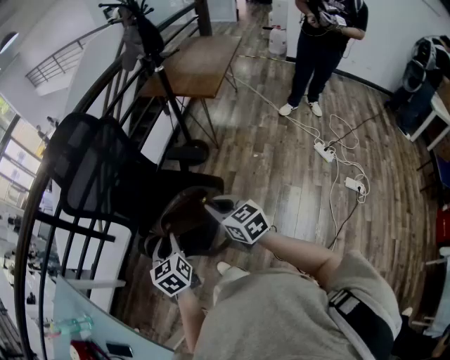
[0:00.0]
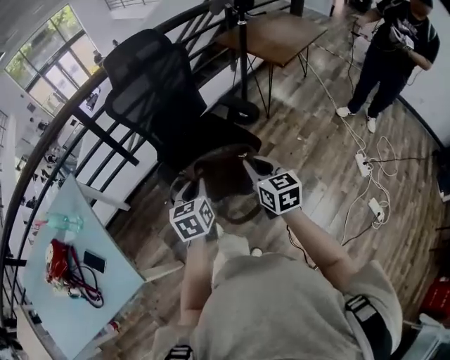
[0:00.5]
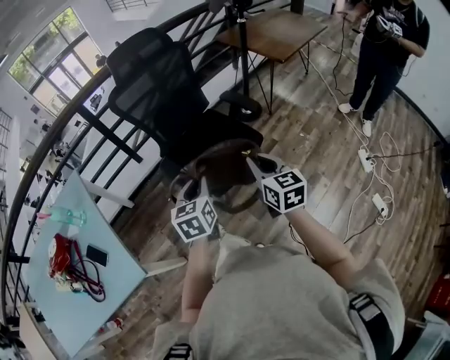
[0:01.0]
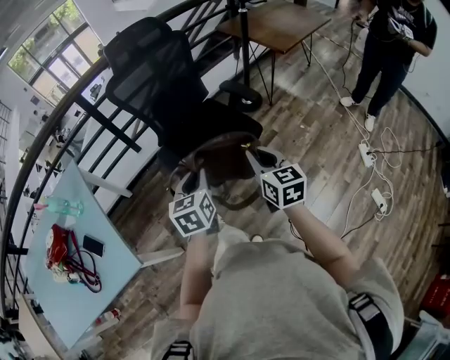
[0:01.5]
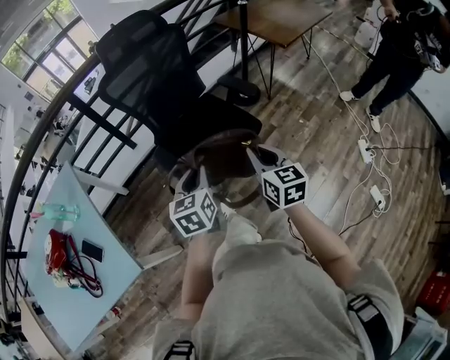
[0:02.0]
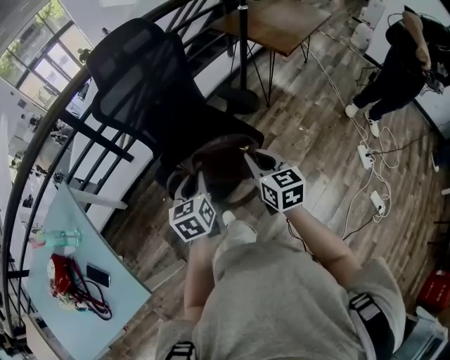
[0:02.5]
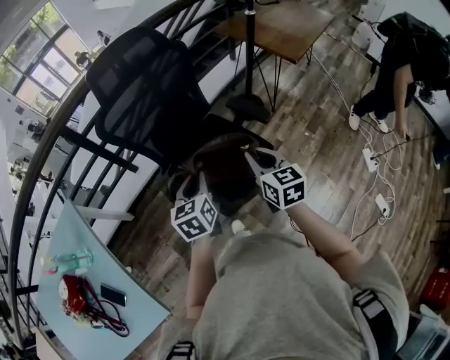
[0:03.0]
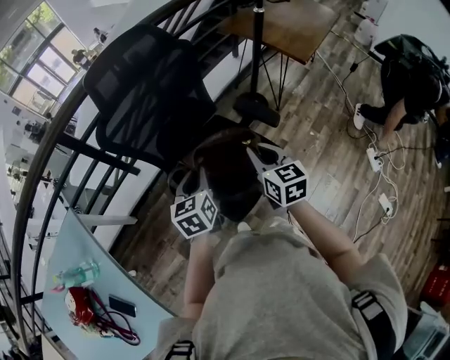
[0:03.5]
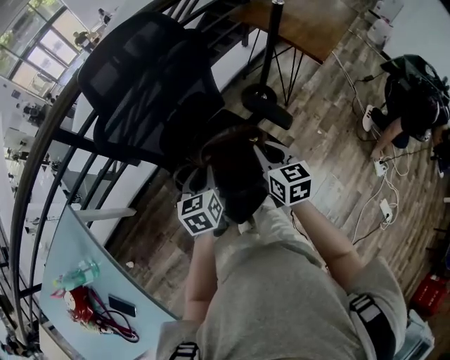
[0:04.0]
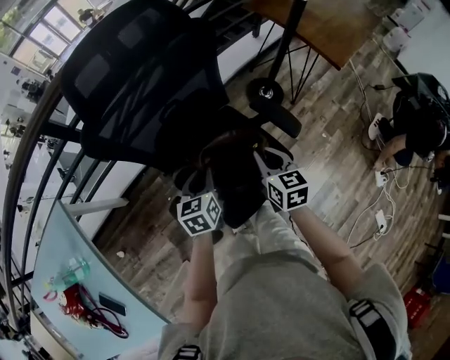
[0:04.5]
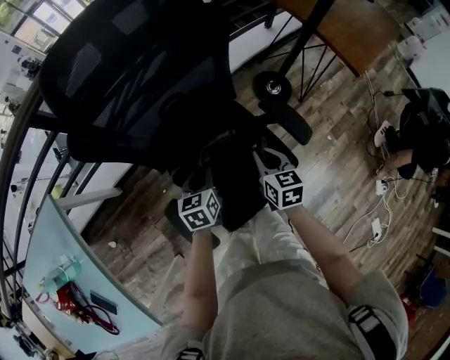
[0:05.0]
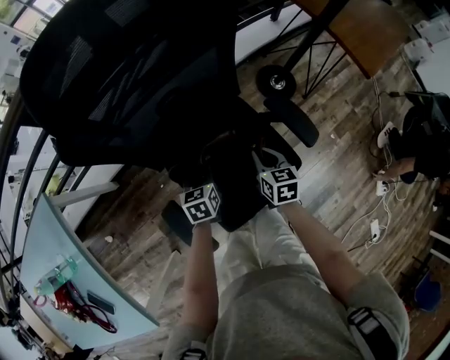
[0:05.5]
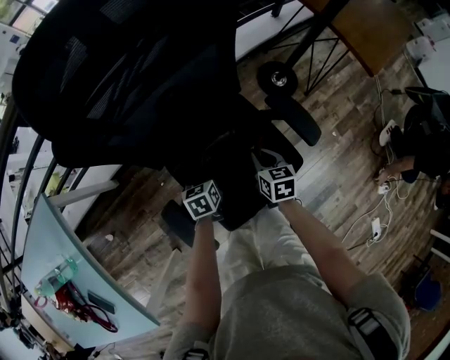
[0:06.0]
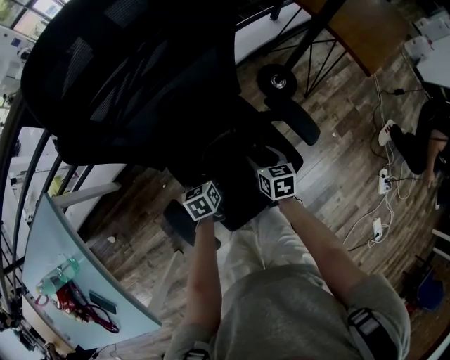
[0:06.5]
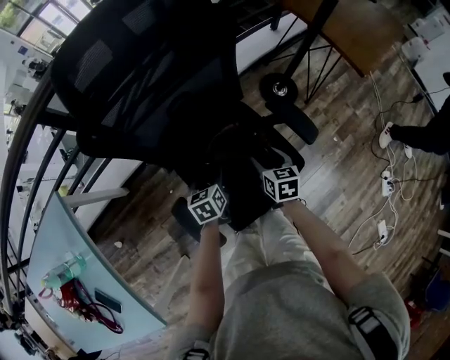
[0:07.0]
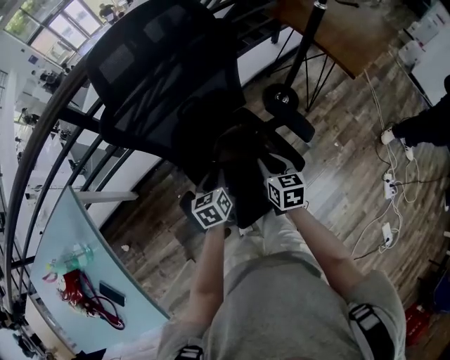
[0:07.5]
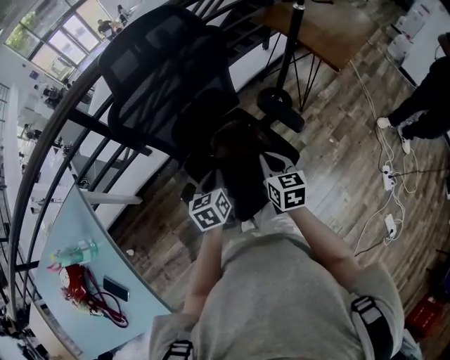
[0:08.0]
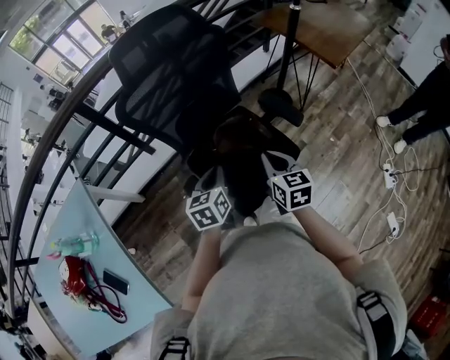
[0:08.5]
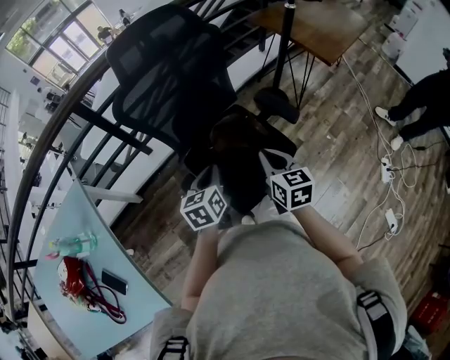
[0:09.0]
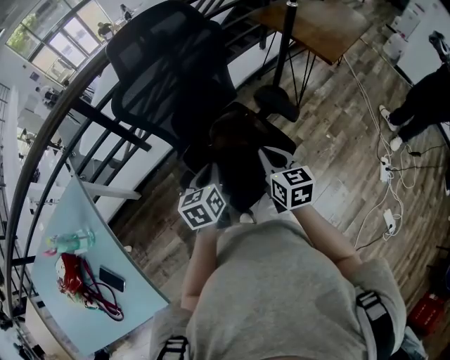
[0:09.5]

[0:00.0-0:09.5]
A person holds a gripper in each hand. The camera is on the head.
0:00.0 to 0:02.0: Both grippers travel together backward, approximately 5 cm.
0:02.0 to 0:04.0: The grippers both shift forward by about 30 cm.
0:04.0 to 0:05.5: The right gripper goes about 25 cm downward and forward; the left gripper moves downward, some 20 cm.
0:05.5 to 0:07.5: Both grippers travel together upward and backward, some 10 cm. The right gripper opens and closes again, while the left gripper opens, then closes again.
0:07.5 to 0:09.5: The two grippers go about 15 cm upward and backward. The right gripper closes up.

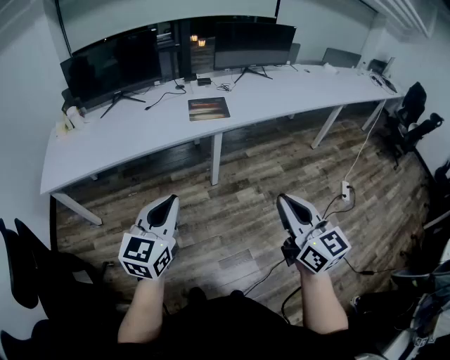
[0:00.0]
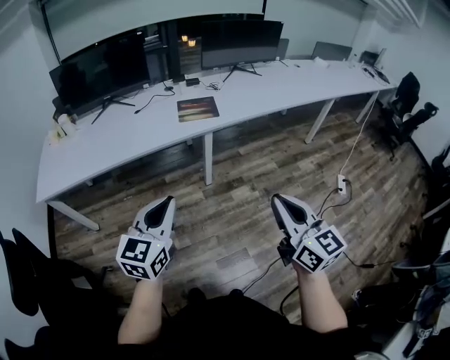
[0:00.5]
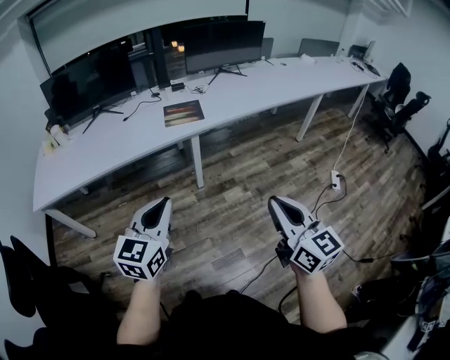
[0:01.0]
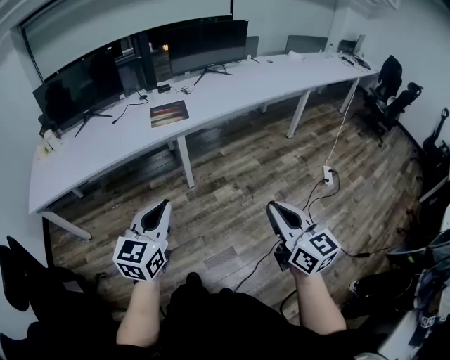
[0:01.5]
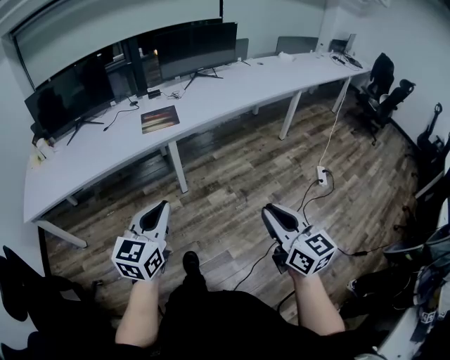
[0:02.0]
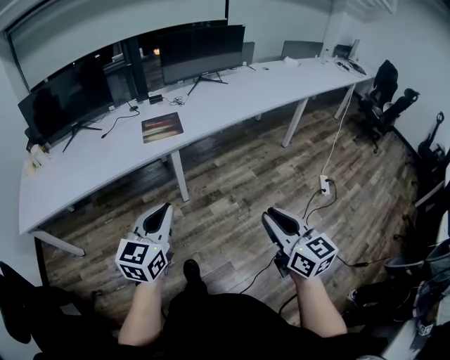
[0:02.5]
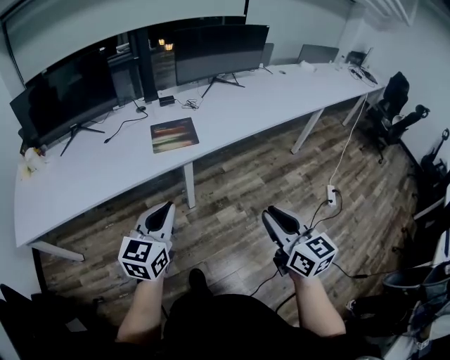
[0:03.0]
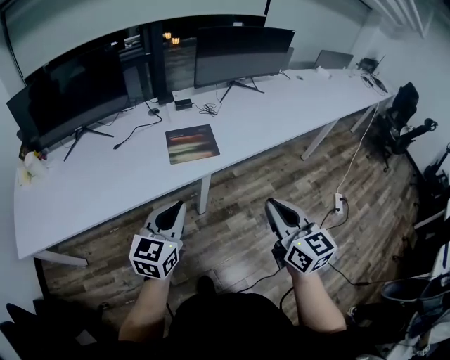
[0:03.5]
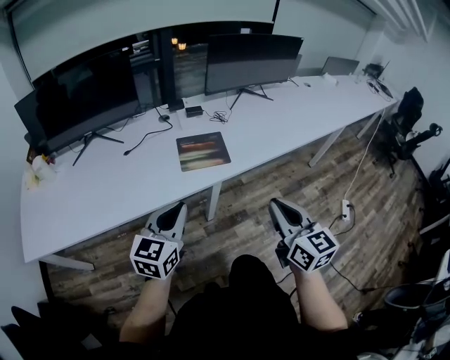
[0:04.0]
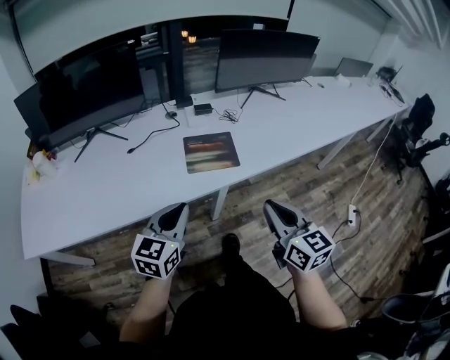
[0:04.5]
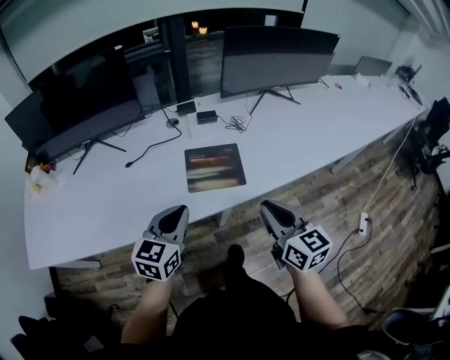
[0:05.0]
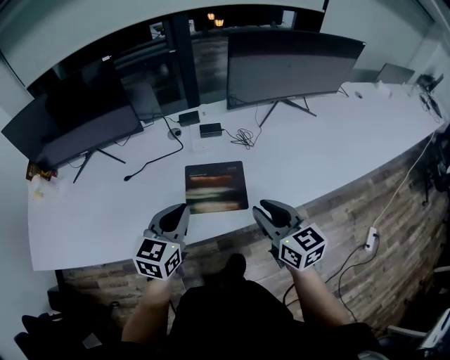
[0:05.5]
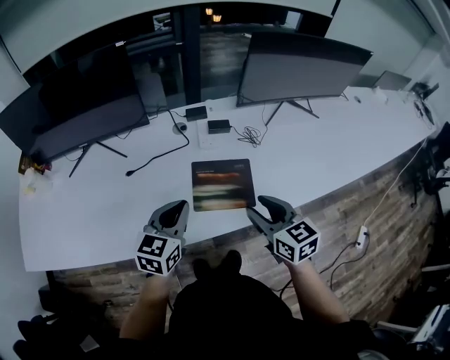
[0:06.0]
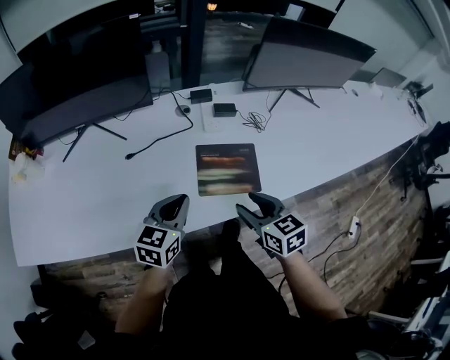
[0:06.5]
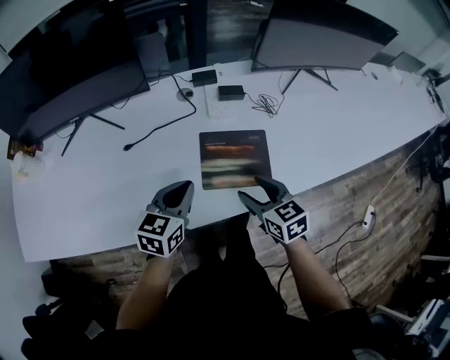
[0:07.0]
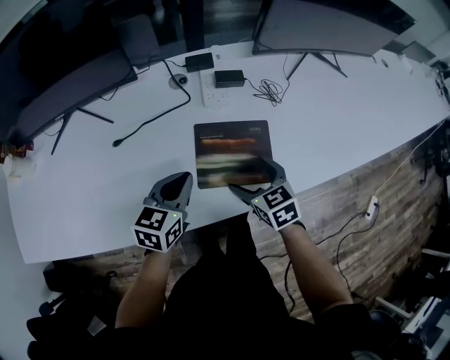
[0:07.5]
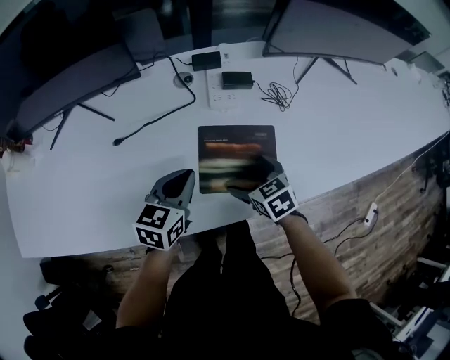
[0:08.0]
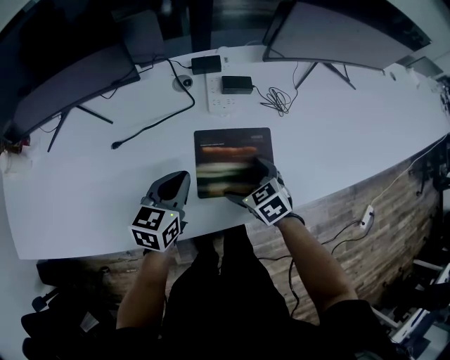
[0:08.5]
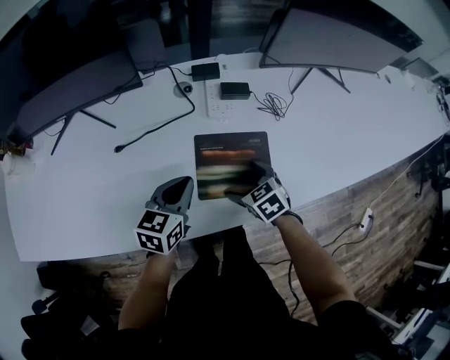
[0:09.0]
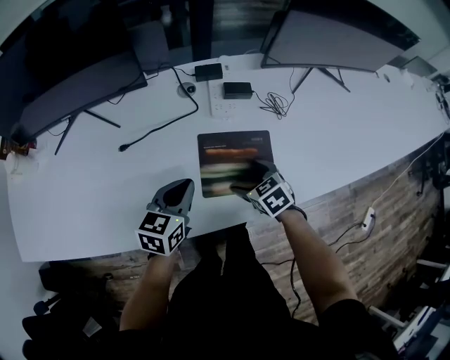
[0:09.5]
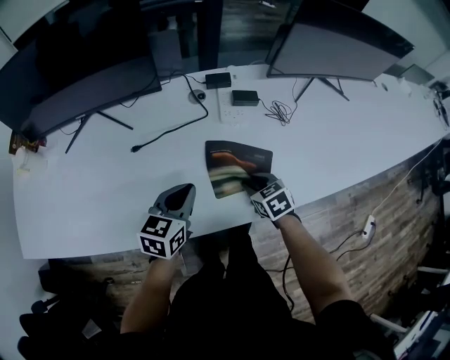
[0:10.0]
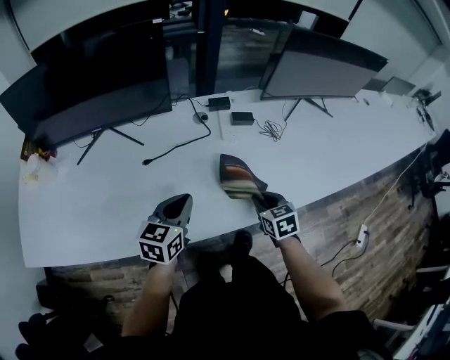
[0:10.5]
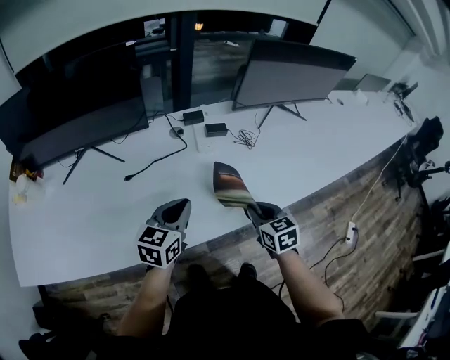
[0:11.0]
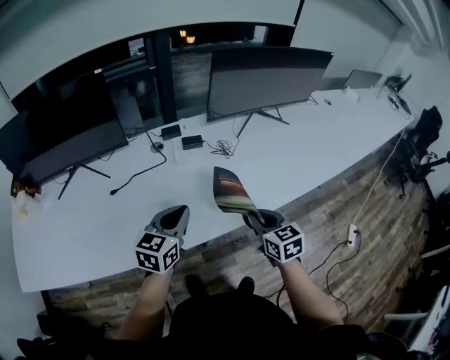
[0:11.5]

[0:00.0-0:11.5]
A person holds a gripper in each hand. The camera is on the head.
0:00.0 to 0:02.0: The grippers both shift to the right by roughly 15 cm.
0:02.0 to 0:04.0: The two grippers travel together, forward and to the left, some 40 cm.
0:04.0 to 0:06.0: Both grippers travel together forward, some 30 cm. The right gripper rotates some 20 degrees.
0:06.0 to 0:07.5: The left gripper moves downward and forward, about 15 cm; the right gripper shifts about 15 cm downward, and opens.
0:07.5 to 0:09.5: The right gripper moves about 5 cm.
0:09.5 to 0:11.5: The grippers both shift upward, to the right and backward by roughly 20 cm. The right gripper rotates approximately 30 degrees, and closes.

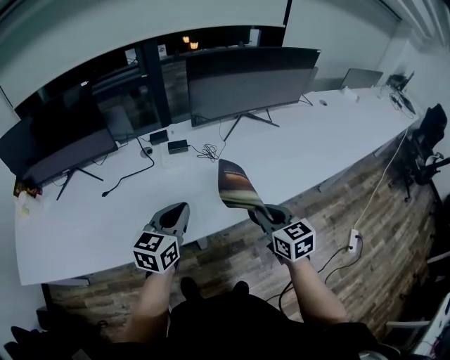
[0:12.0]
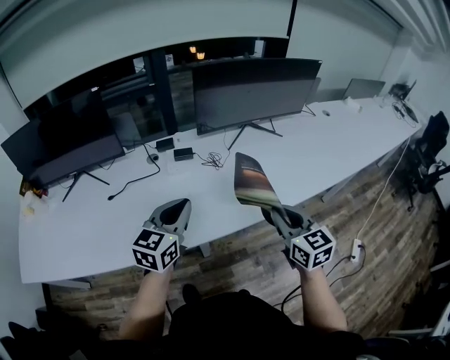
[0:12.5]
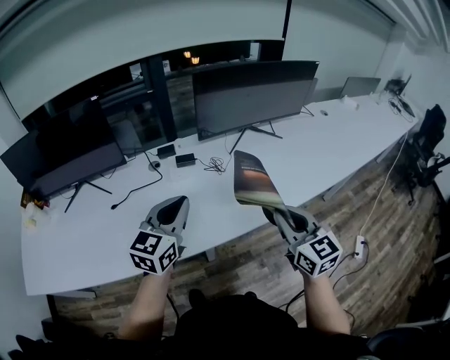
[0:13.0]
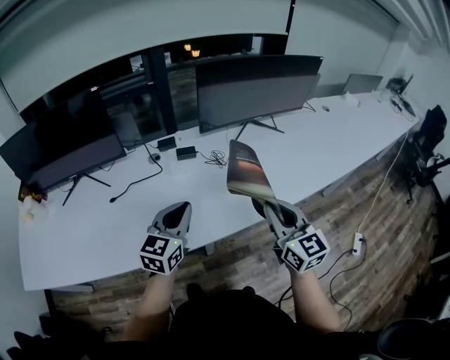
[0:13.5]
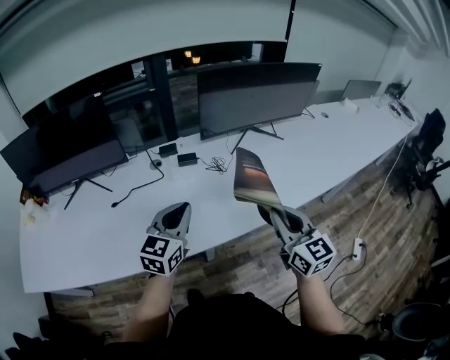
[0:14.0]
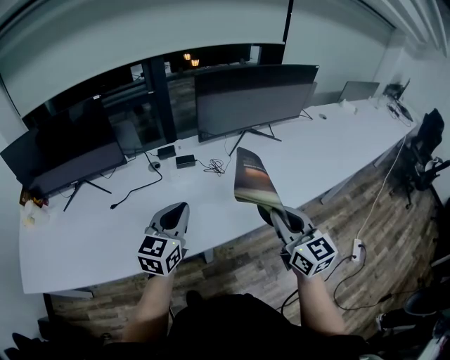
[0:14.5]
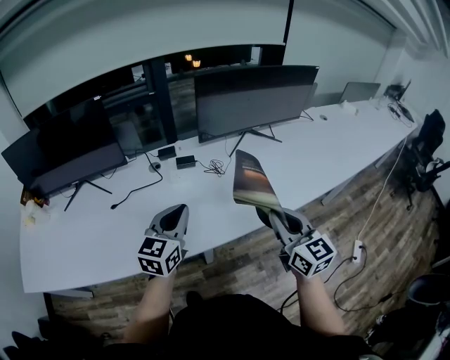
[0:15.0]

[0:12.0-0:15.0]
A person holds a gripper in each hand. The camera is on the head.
0:12.0 to 0:13.5: The right gripper heads upward, covering about 10 cm, and rotates about 20 degrees.
0:13.5 to 0:15.0: The grippers make only small movements.

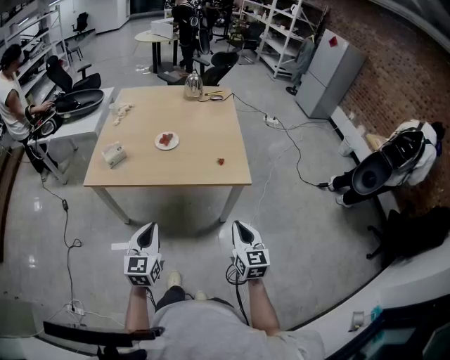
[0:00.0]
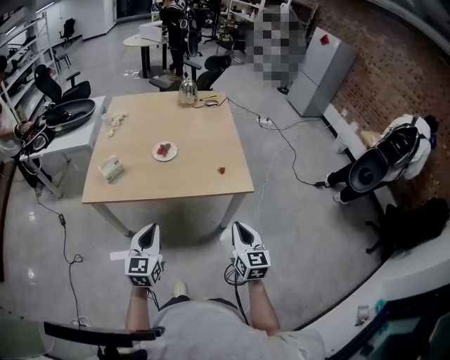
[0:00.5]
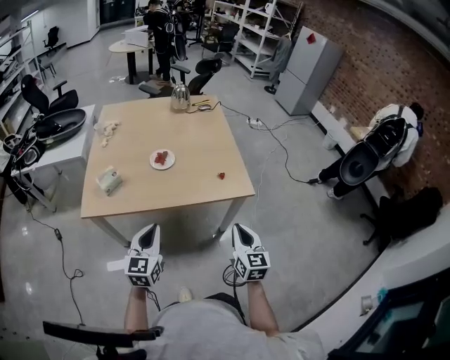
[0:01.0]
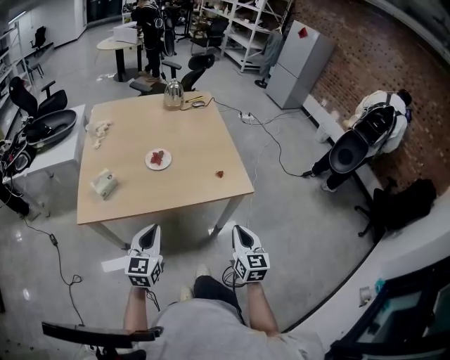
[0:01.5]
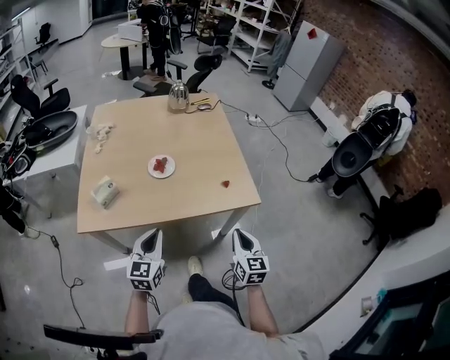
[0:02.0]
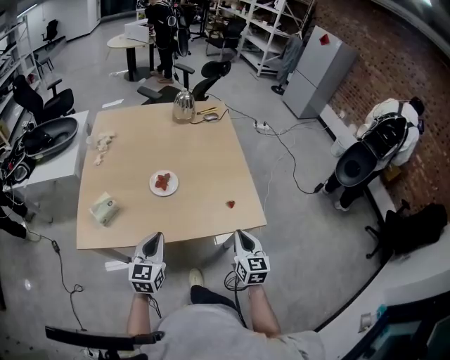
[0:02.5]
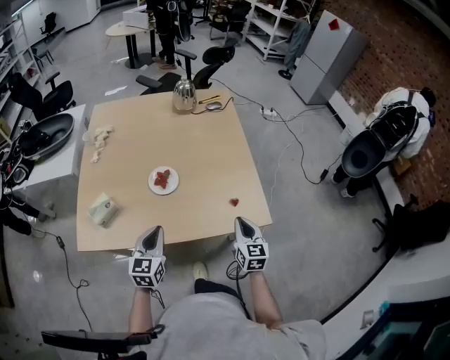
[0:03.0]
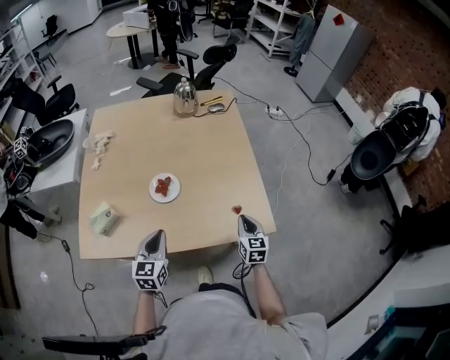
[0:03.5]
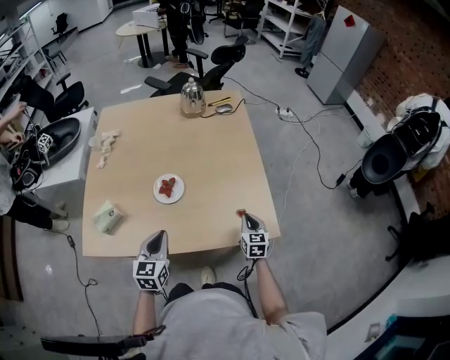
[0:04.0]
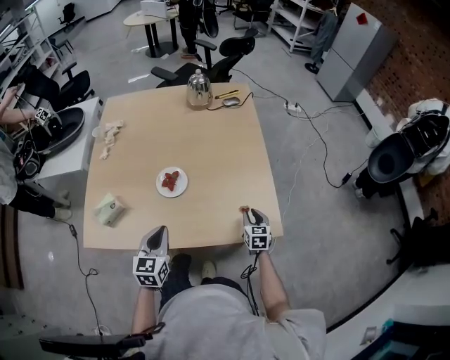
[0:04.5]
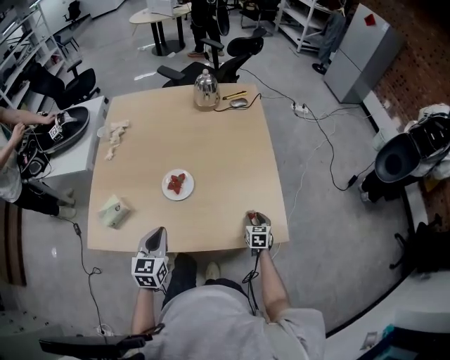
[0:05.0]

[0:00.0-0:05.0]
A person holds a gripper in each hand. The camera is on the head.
0:00.0 to 0:02.5: The grippers both shift forward by about 25 cm.
0:02.5 to 0:05.0: The right gripper travels downward and forward by some 30 cm, changes its angle by approximately 20 degrees, and opens its fingers. The left gripper heads forward, covering some 10 cm.
